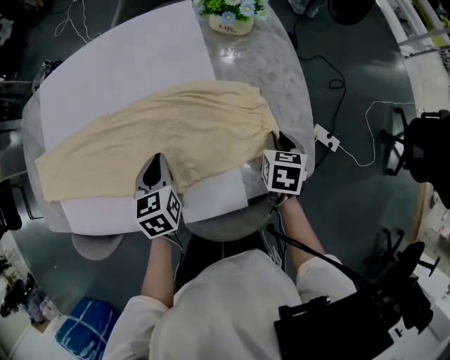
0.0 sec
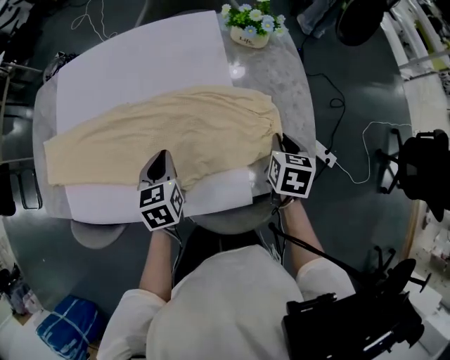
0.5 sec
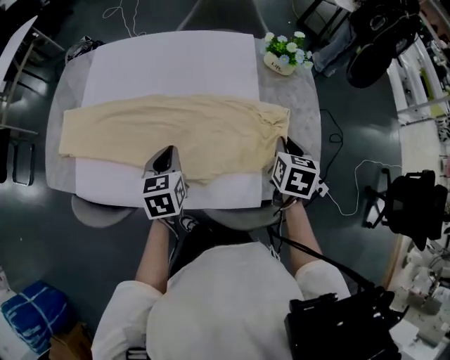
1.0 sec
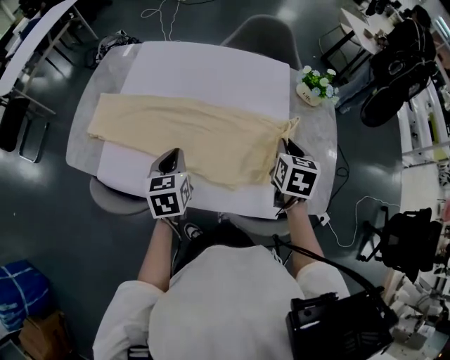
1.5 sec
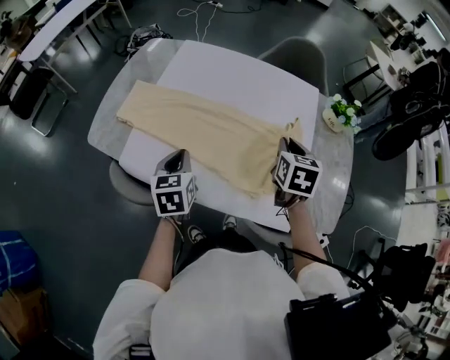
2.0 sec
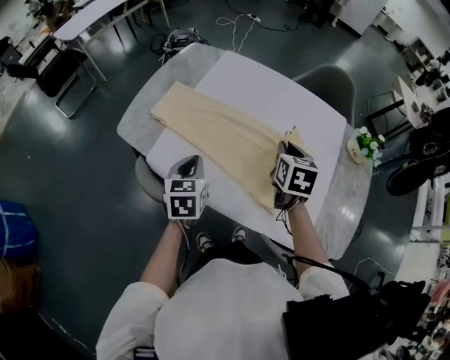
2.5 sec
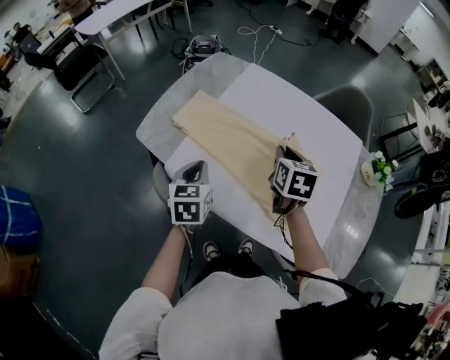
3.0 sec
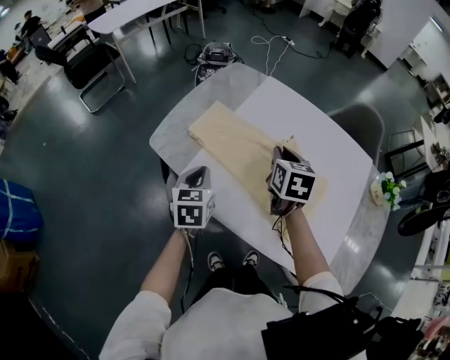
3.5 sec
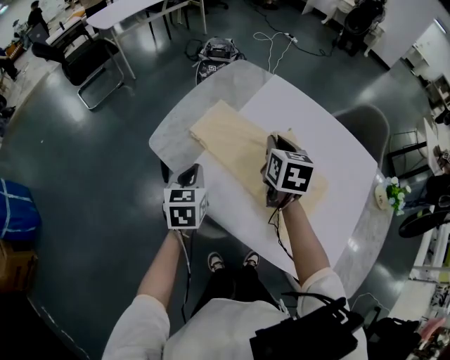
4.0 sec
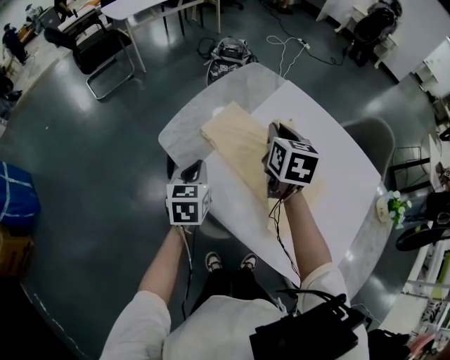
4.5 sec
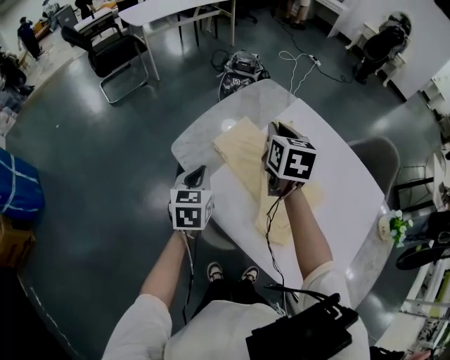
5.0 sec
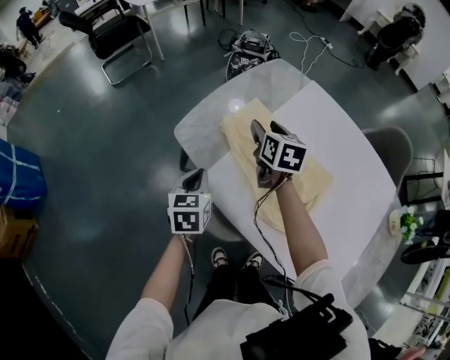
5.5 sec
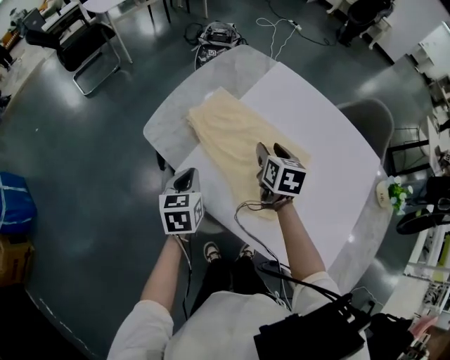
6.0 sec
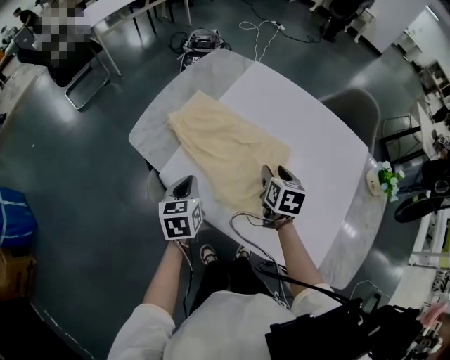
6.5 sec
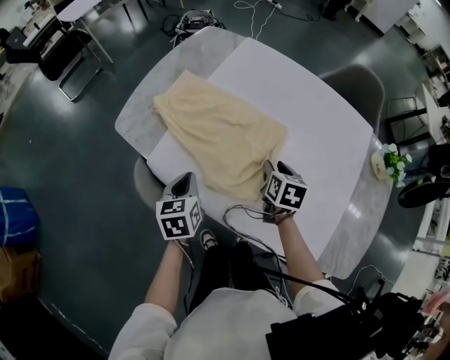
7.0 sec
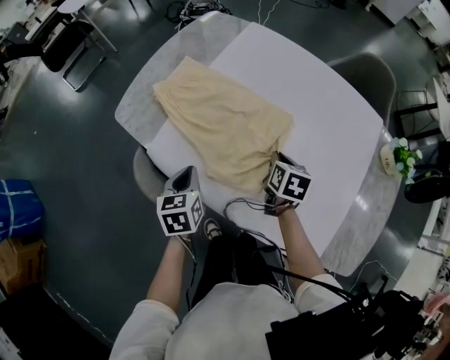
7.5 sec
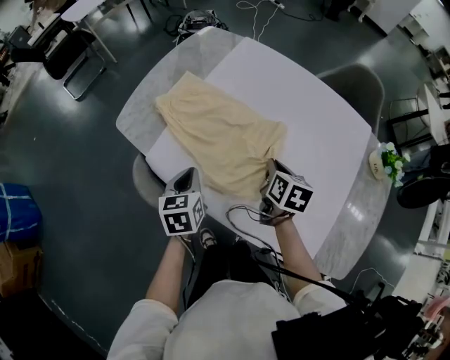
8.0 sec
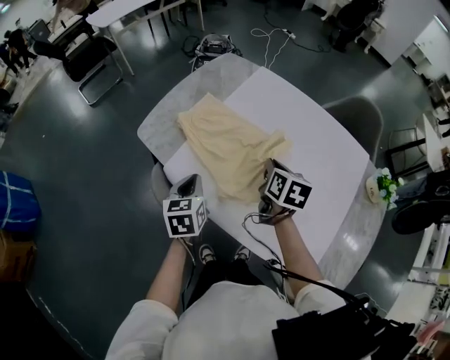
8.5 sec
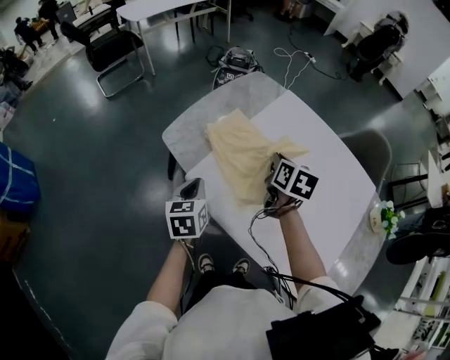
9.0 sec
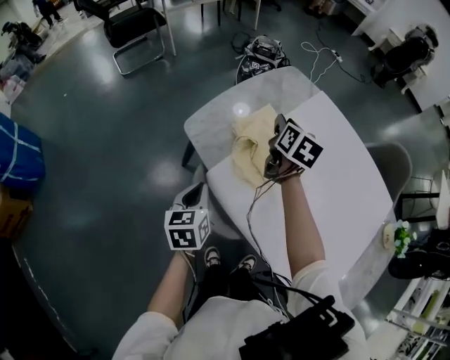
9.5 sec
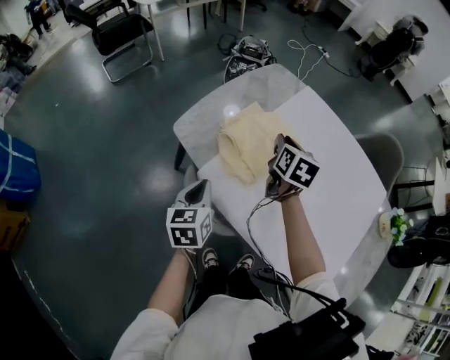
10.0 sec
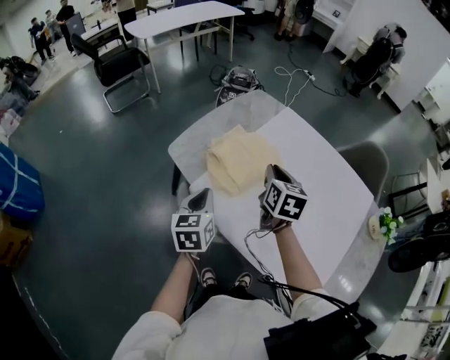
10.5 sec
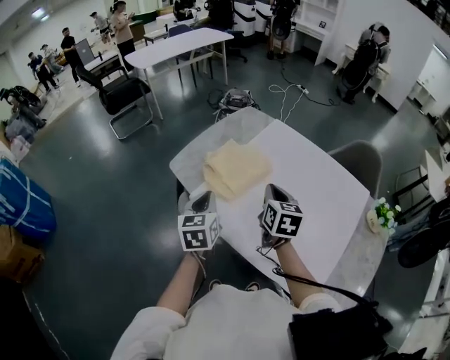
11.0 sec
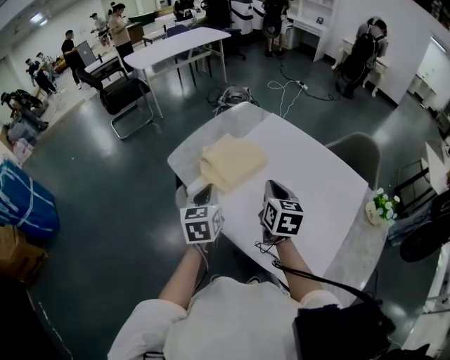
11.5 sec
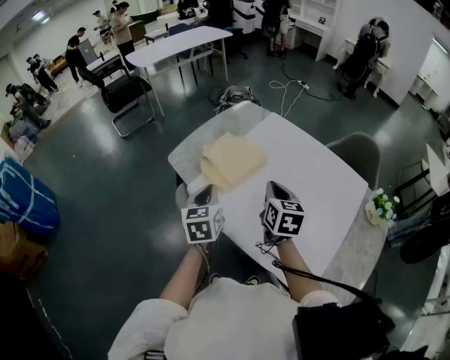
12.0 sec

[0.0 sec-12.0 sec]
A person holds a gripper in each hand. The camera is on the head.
0.0 sec to 2.0 sec: The left gripper goes about 35 cm to the left, upward and backward, and turns by approximately 20 degrees. The right gripper heads to the left and upward, covering some 40 cm, and swivels about 30 degrees.
2.0 sec to 4.0 sec: The left gripper travels to the left by about 20 cm, while the right gripper shifts some 35 cm to the left and forward, and rotates some 20 degrees.
4.0 sec to 6.0 sec: The right gripper heads downward, covering some 10 cm, and opens.
6.0 sec to 8.0 sec: The left gripper heads to the right, covering approximately 15 cm. The right gripper heads to the right and backward, covering about 20 cm, and closes its fingers.
8.0 sec to 10.0 sec: The left gripper moves to the left, some 15 cm; the right gripper moves to the left, forward and upward, roughly 30 cm.
10.0 sec to 12.0 sec: The left gripper shifts some 20 cm to the right, upward and backward. The right gripper heads backward, to the right and upward, covering about 25 cm.

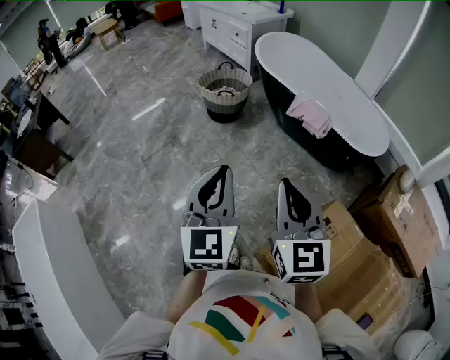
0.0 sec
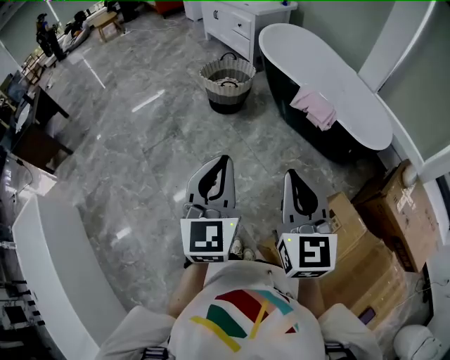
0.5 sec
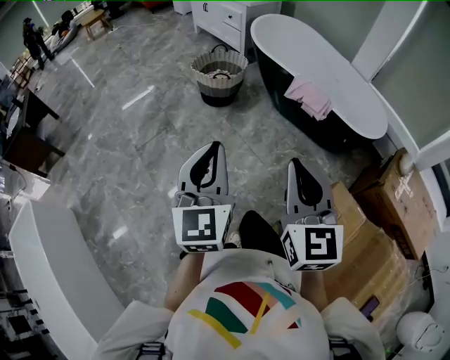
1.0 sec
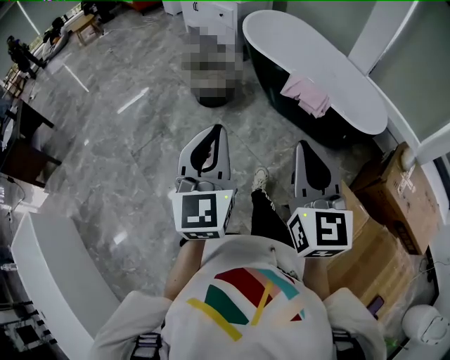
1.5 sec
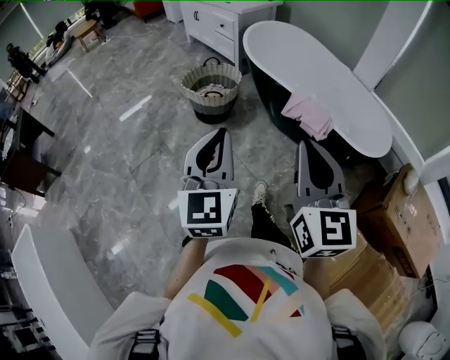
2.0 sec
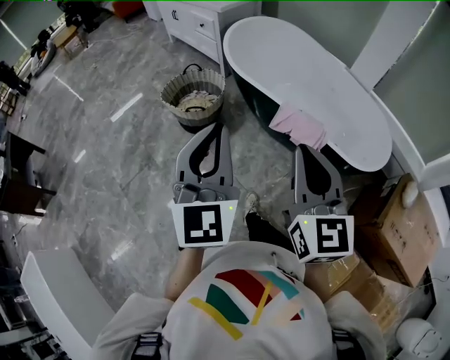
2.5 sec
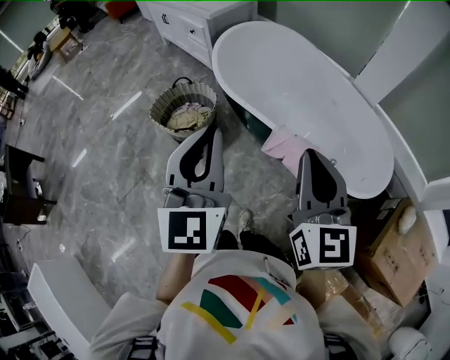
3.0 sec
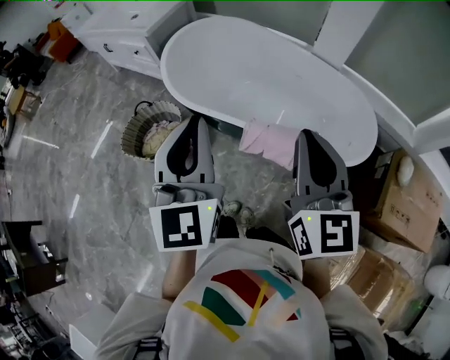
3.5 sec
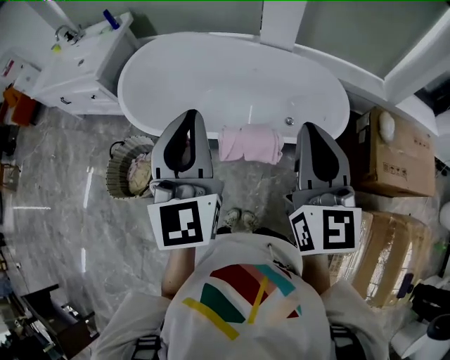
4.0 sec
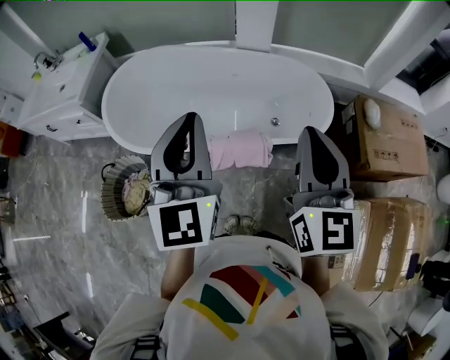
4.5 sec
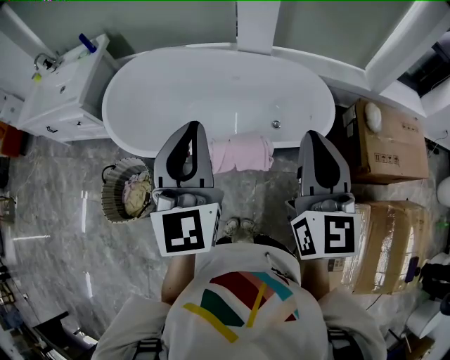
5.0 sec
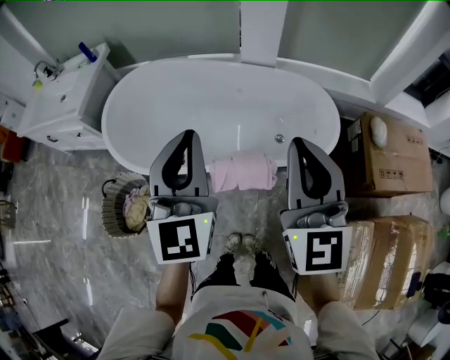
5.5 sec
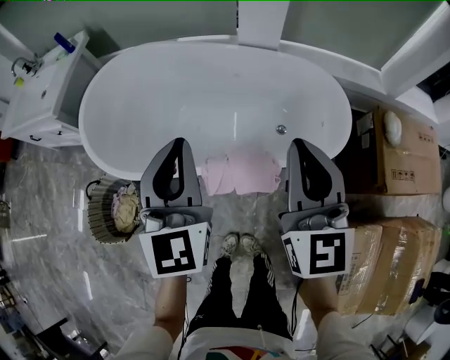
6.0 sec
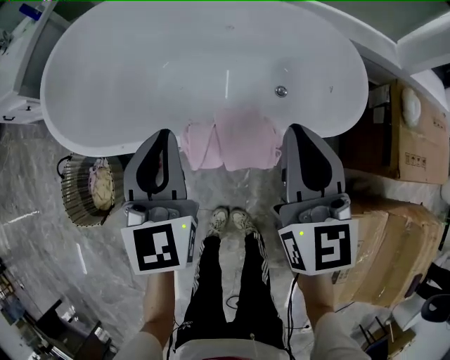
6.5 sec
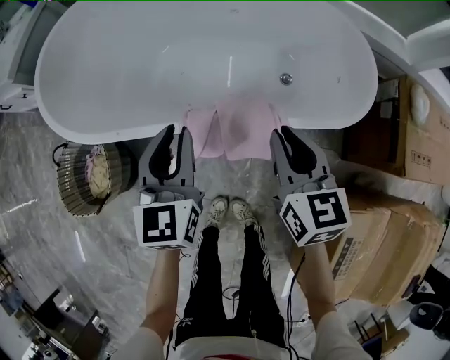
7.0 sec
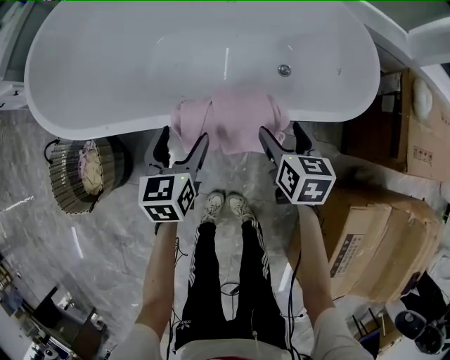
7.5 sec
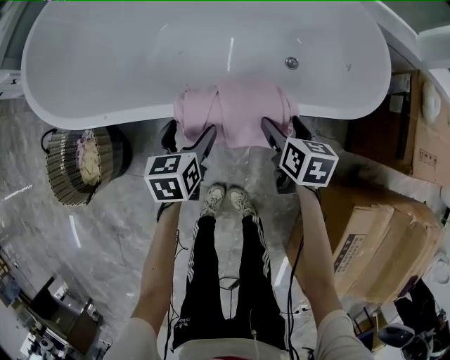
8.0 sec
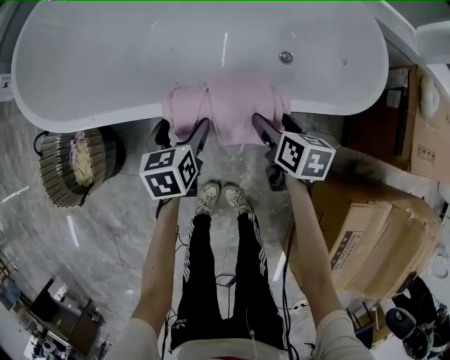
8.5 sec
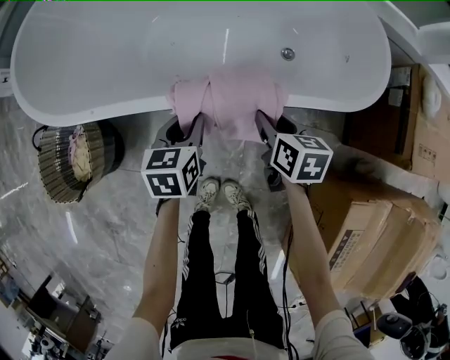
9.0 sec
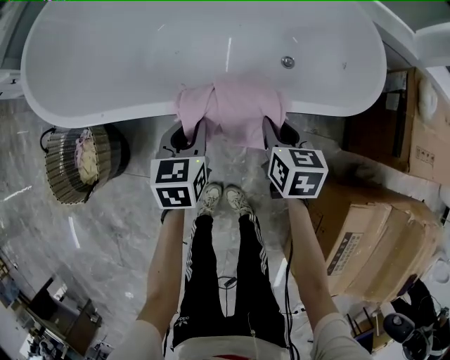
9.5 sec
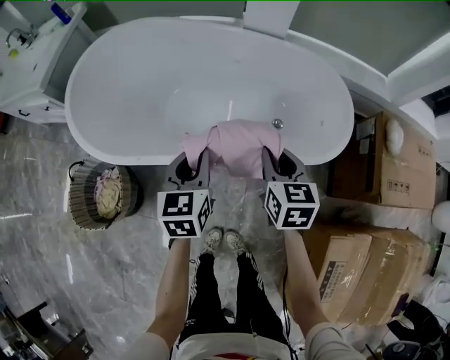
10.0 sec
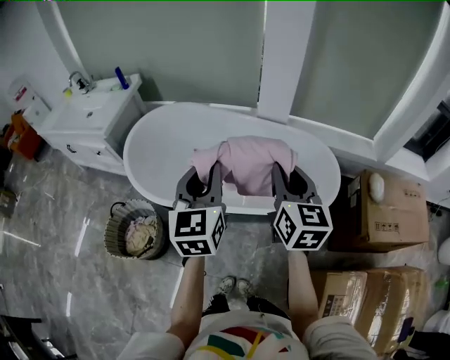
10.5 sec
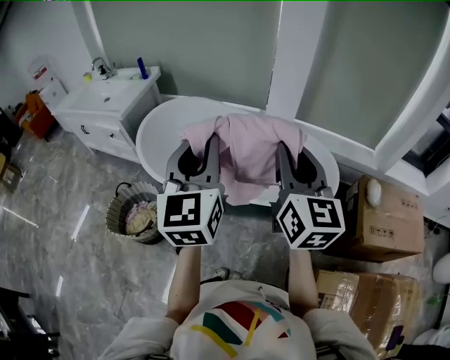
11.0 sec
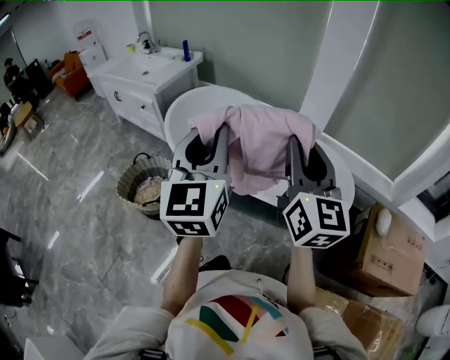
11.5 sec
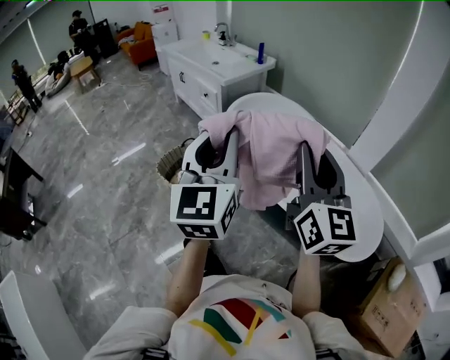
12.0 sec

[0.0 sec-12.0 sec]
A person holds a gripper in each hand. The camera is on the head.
0.0 sec to 2.0 sec: The two grippers go approximately 20 cm forward.
2.0 sec to 4.0 sec: The two grippers travel together, about 50 cm. The left gripper swivels some 30 degrees. The right gripper rotates approximately 40 degrees.
4.0 sec to 6.0 sec: The left gripper moves downward and forward, approximately 20 cm. The right gripper heads forward and downward, covering about 20 cm.
6.0 sec to 8.0 sec: The two grippers go roughly 50 cm downward. The right gripper tilts its fingers roughly 40 degrees downward, and opens. Meanwhile the left gripper angles its fingers downward, by approximately 40 degrees, and opens up.
8.0 sec to 10.0 sec: The two grippers go some 25 cm upward. The left gripper closes its fingers. Meanwhile the right gripper rotates approximately 20 degrees, and closes.
10.0 sec to 12.0 sec: The two grippers go approximately 40 cm upward. The left gripper points its fingers approximately 40 degrees further upward. The right gripper angles its fingers upward, by approximately 50 degrees.

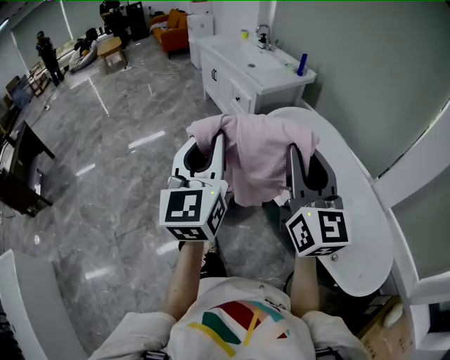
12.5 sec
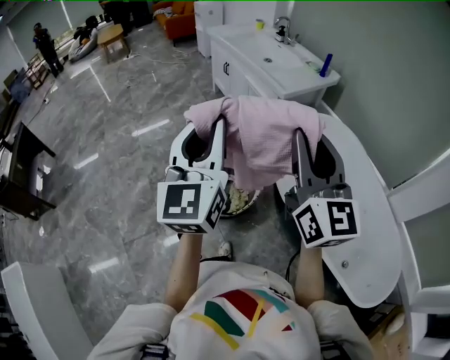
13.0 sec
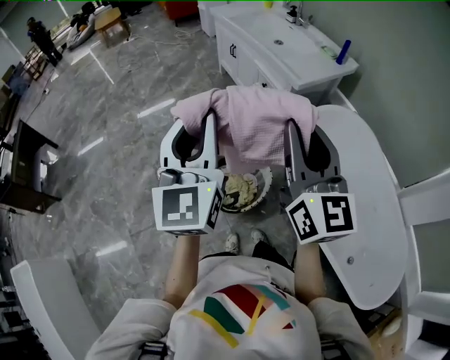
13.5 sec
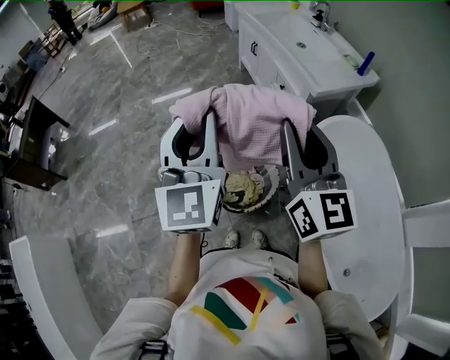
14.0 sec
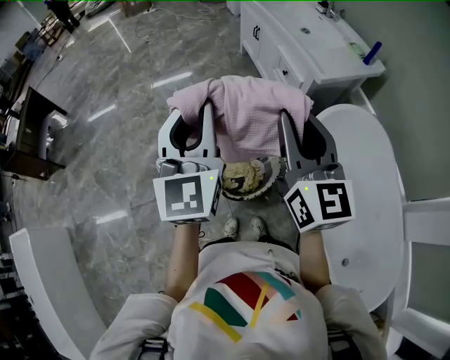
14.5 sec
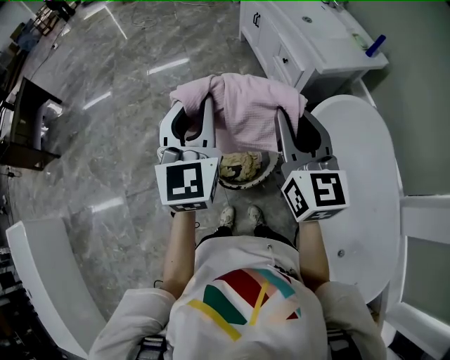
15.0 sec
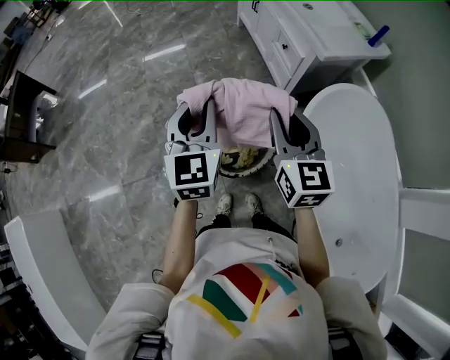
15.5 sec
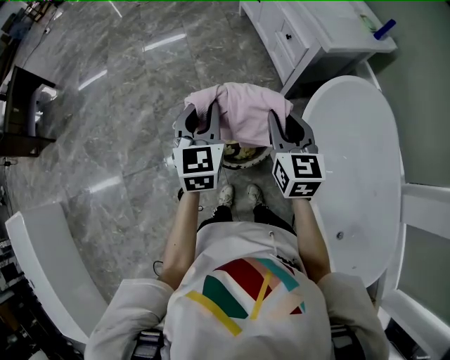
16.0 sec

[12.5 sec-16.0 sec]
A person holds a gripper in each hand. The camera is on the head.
12.5 sec to 14.5 sec: The left gripper goes approximately 30 cm forward and to the left; the right gripper moves forward, about 35 cm.
14.5 sec to 16.0 sec: The grippers both shift downward by approximately 20 cm. The right gripper swivels approximately 20 degrees, while the left gripper changes its angle by about 20 degrees.
